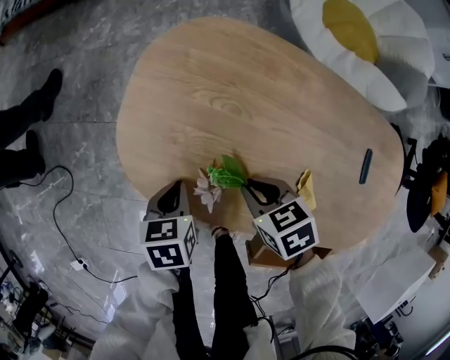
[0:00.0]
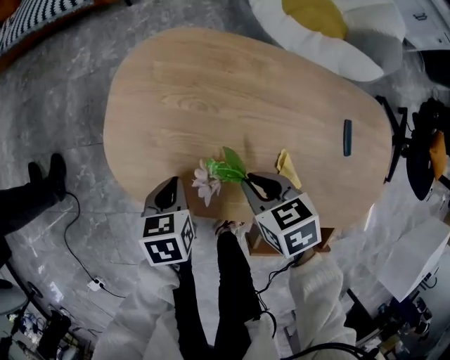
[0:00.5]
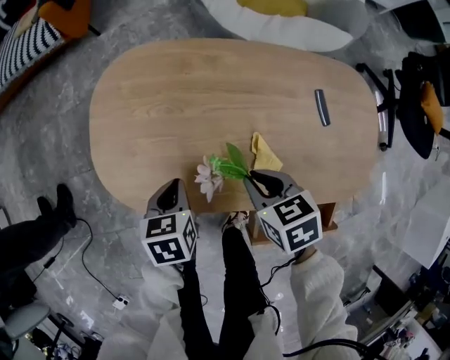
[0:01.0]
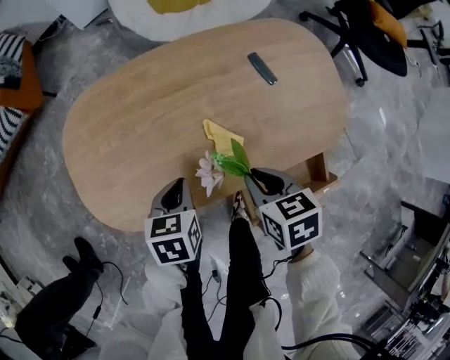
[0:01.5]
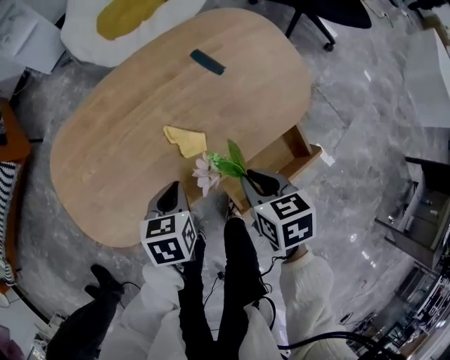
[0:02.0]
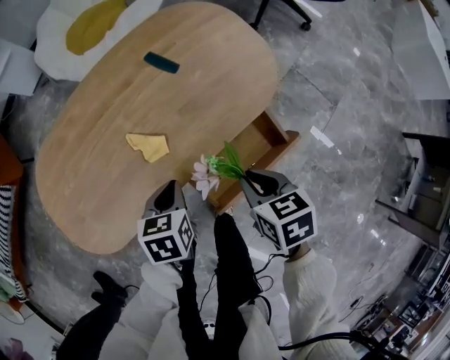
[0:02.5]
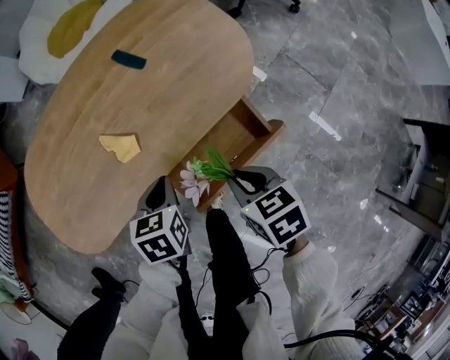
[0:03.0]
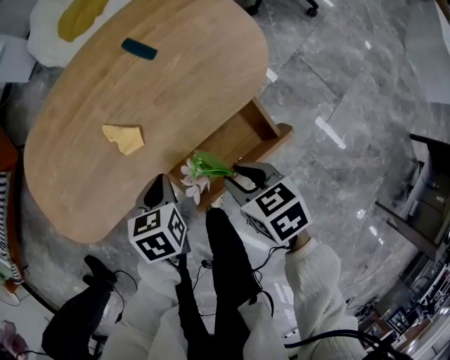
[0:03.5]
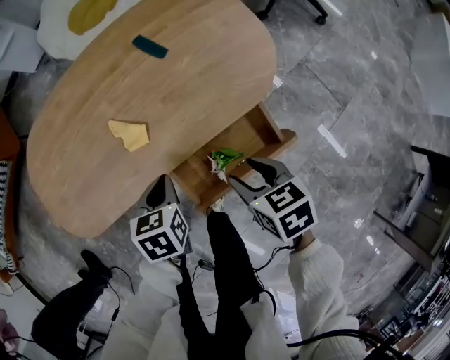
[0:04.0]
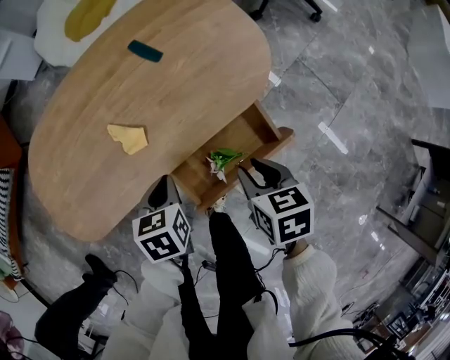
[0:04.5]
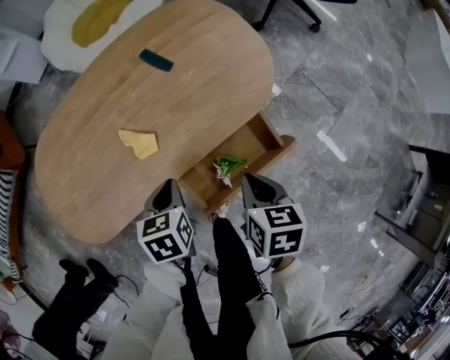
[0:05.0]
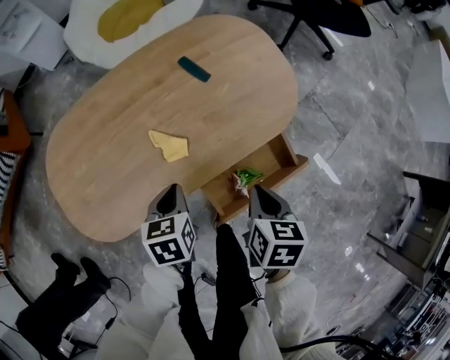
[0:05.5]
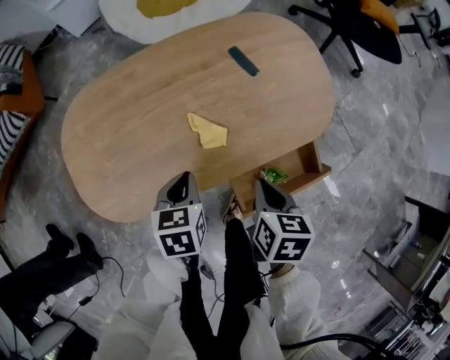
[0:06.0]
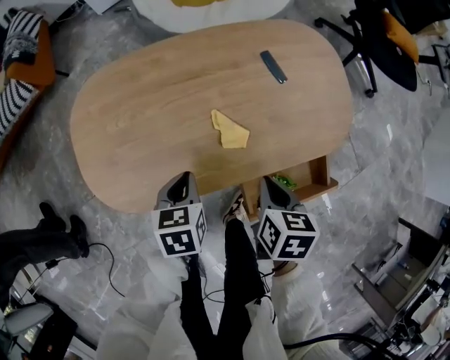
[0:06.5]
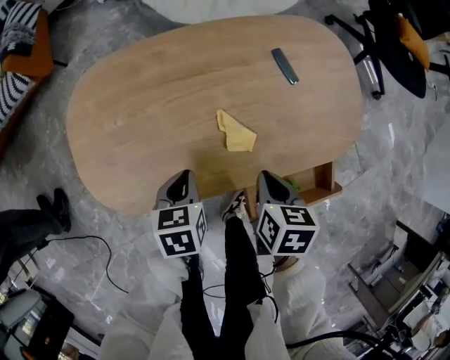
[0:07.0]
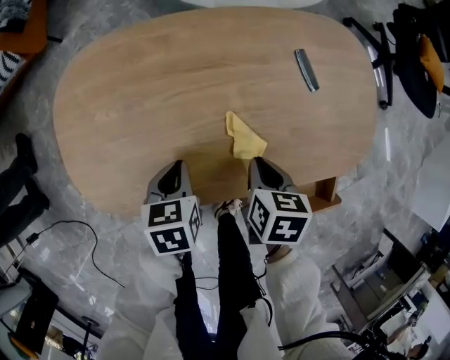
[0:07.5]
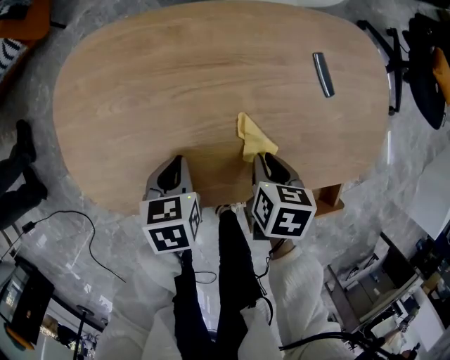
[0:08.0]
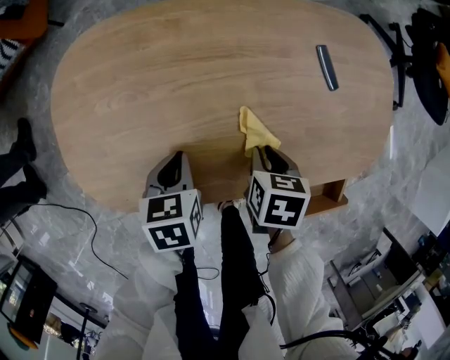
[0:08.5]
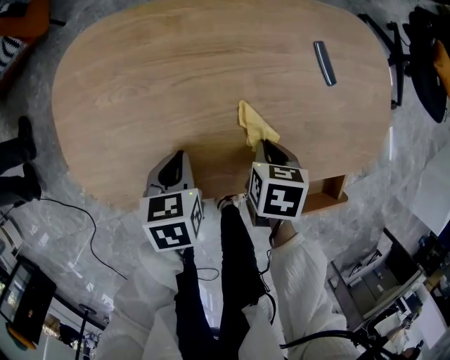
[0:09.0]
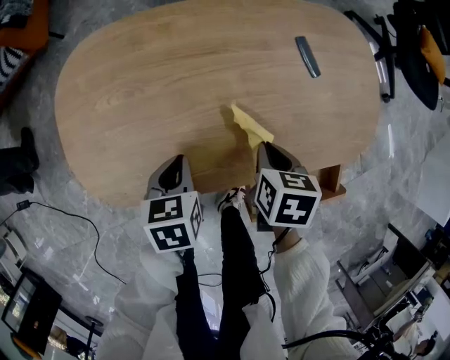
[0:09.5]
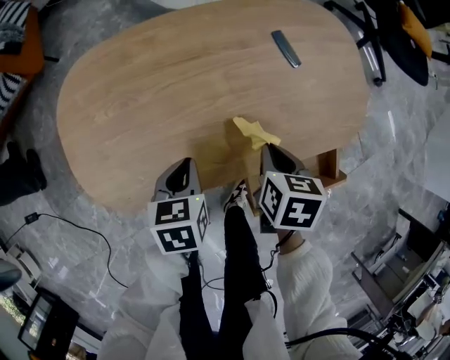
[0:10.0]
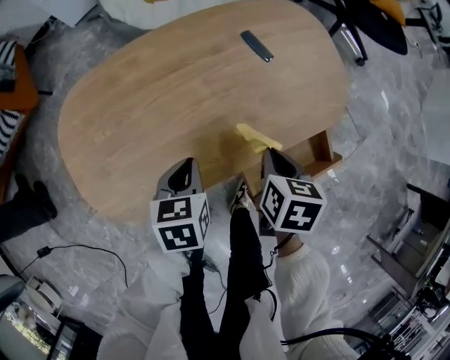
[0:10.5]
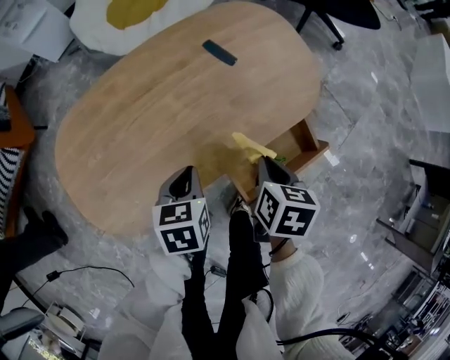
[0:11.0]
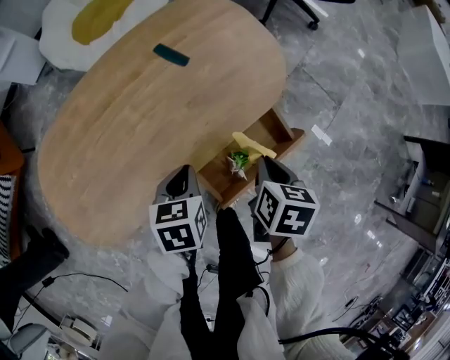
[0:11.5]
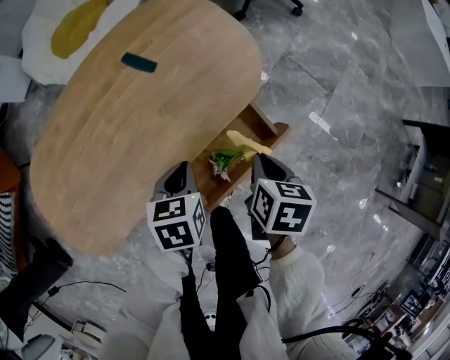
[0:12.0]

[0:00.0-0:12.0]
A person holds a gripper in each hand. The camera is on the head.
0:00.0 to 0:02.0: The left gripper ends up roughly 25 cm from where it was, and twists about 40 degrees clockwise, seen from behind; the right gripper shifts by approximately 30 cm, and swivels about 70 degrees.
0:02.0 to 0:04.0: The left gripper moves to the right, roughly 10 cm. The right gripper heads to the right and backward, covering some 15 cm, and opens its fingers.
0:04.0 to 0:06.0: The grippers both shift to the left by about 15 cm. The right gripper rotates about 20 degrees, and closes up.
0:06.0 to 0:08.0: The right gripper goes about 20 cm downward, forward and to the left, and changes its angle by some 20 degrees, while the left gripper shifts approximately 15 cm to the left and downward.
0:08.0 to 0:10.0: The right gripper travels upward by approximately 5 cm, while the left gripper moves about 5 cm.
0:10.0 to 0:12.0: The left gripper shifts by about 25 cm, and swivels some 30 degrees, while the right gripper shifts by approximately 25 cm, and rotates some 30 degrees.

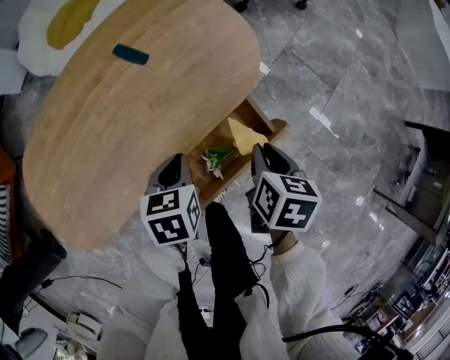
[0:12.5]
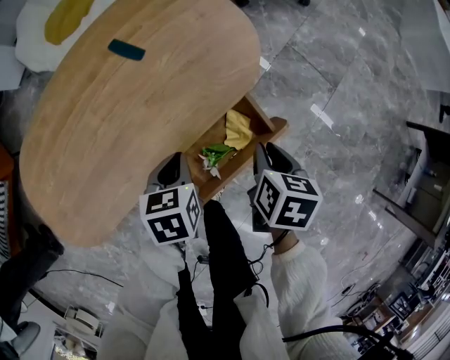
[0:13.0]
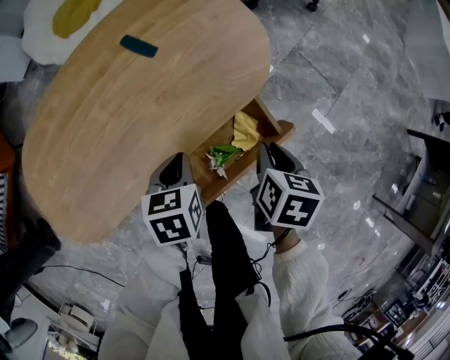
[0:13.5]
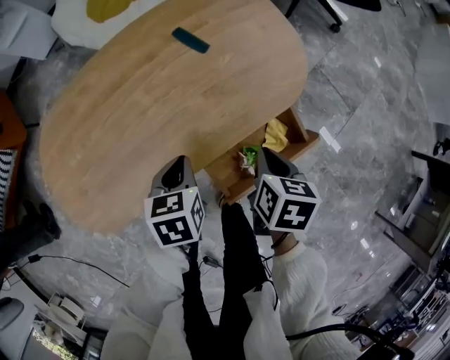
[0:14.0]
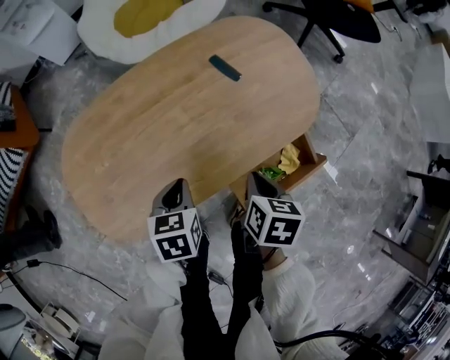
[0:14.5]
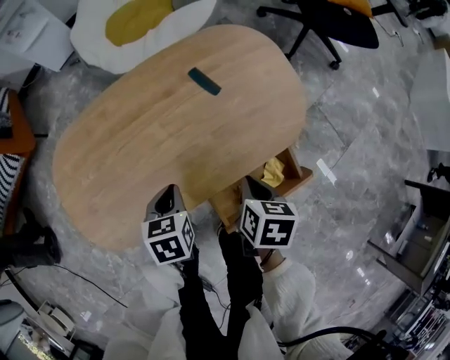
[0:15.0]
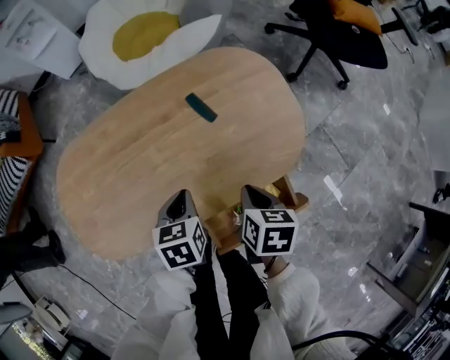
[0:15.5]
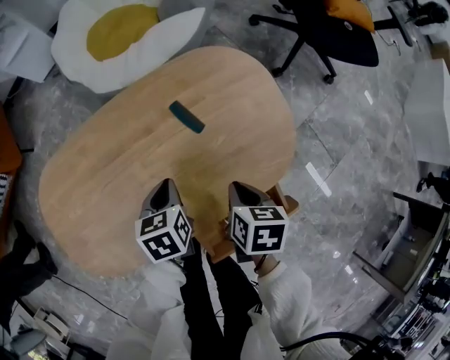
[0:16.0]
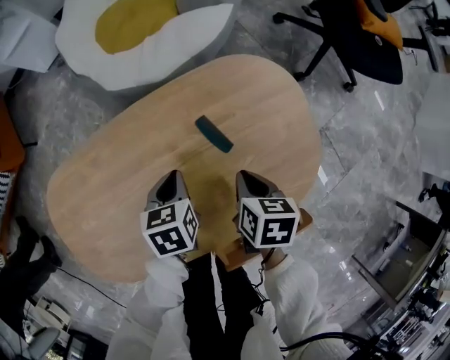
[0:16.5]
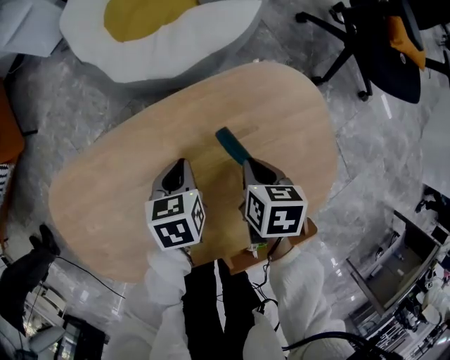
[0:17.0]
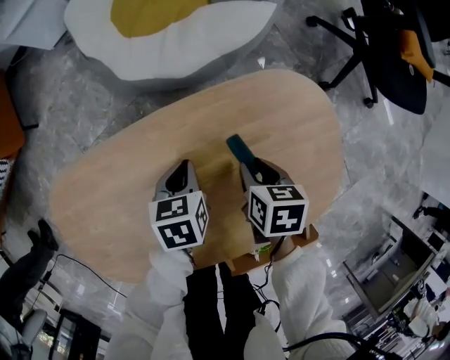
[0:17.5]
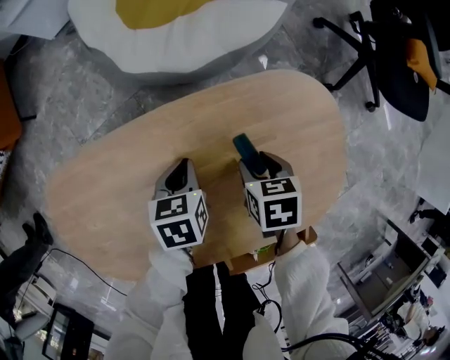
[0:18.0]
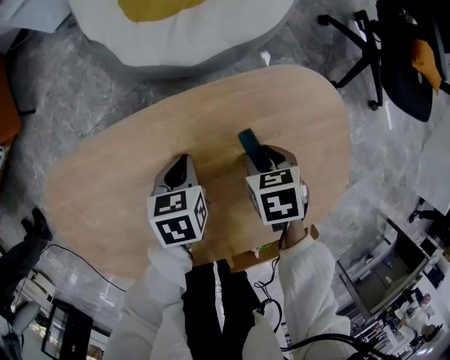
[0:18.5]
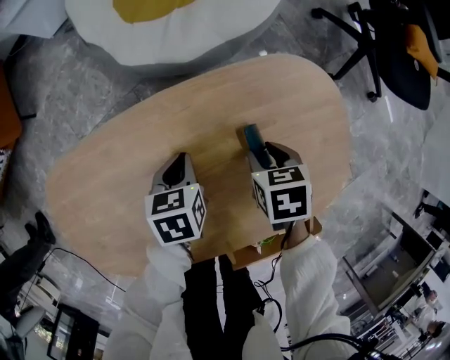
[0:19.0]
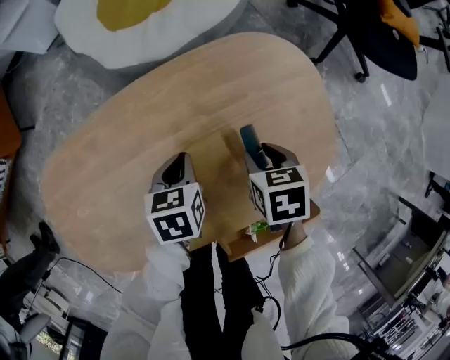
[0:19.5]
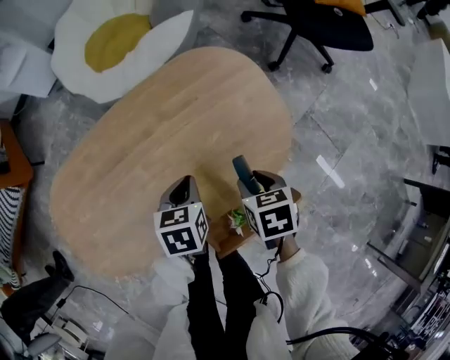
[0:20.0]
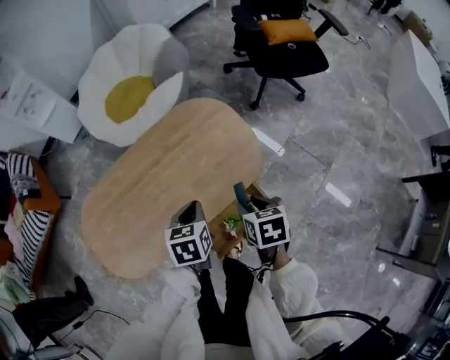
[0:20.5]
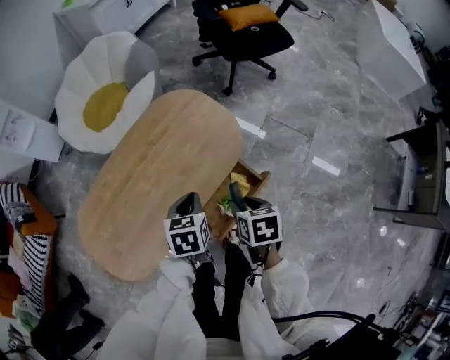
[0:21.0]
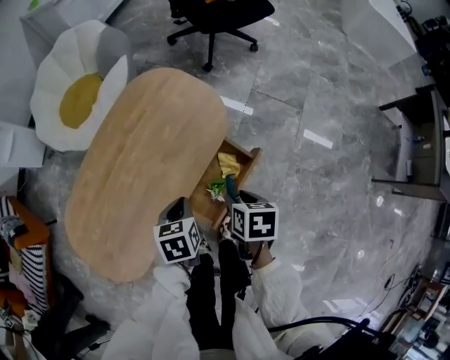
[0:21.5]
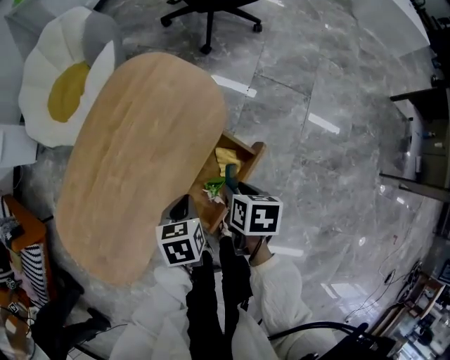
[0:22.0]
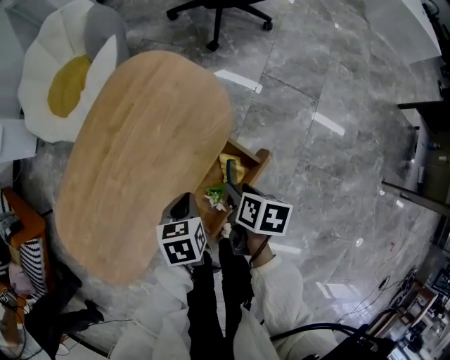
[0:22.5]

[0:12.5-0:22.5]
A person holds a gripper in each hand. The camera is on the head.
0:12.5 to 0:14.5: The grippers both shift to the left by roughly 20 cm.
0:14.5 to 0:16.5: Both grippers travel together forward, some 25 cm.
0:16.5 to 0:18.5: The left gripper changes place by some 10 cm. Meanwhile the right gripper ends up approximately 15 cm from where it was, turns by about 30 degrees, and opens up.
0:18.5 to 0:20.5: The right gripper moves some 40 cm, and rotates roughly 30 degrees, while the left gripper ends up about 40 cm from where it was, and rotates about 20 degrees.
0:20.5 to 0:22.5: Both grippers move downward and to the right, approximately 15 cm. The right gripper twists roughly 50 degrees clockwise, seen from behind, while the left gripper rotates some 20 degrees.

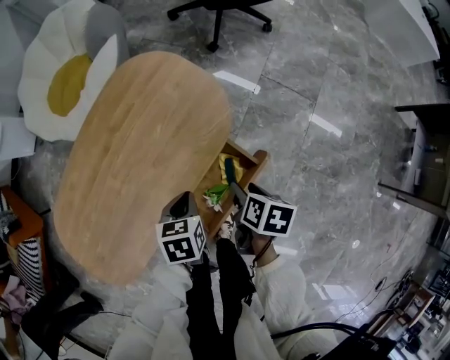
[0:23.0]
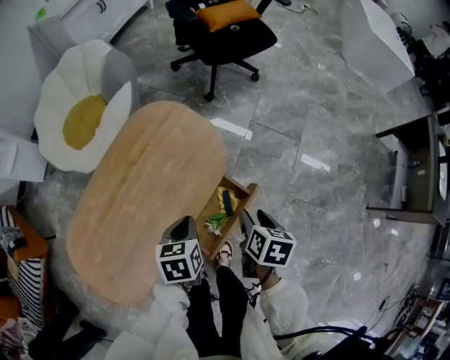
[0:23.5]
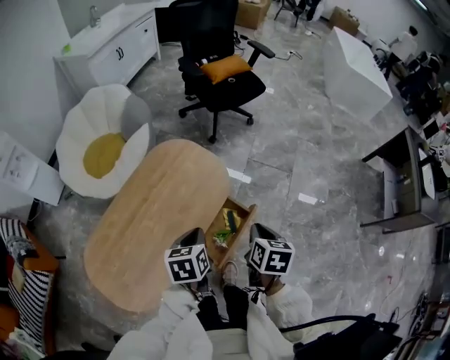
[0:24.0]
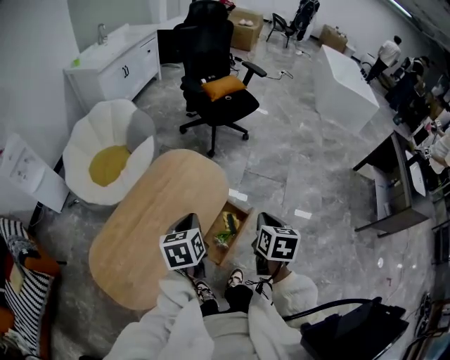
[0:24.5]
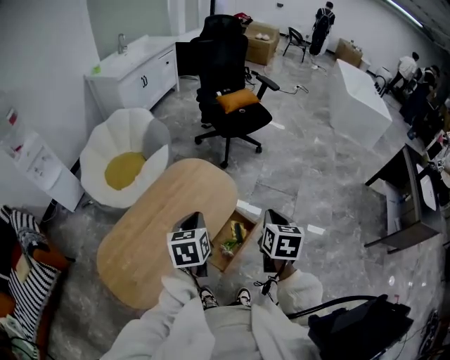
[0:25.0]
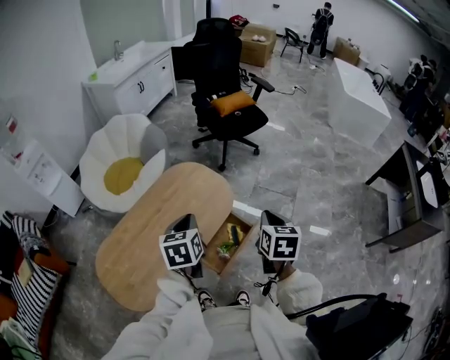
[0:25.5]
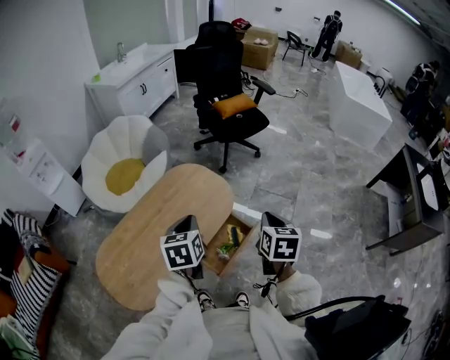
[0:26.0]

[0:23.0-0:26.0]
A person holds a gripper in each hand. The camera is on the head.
0:23.0 to 0:24.5: Both grippers move upward, about 30 cm. The right gripper rotates approximately 30 degrees, and closes its fingers. Meanwhile the left gripper swivels about 20 degrees.
0:24.5 to 0:26.0: The grippers make only small movements.

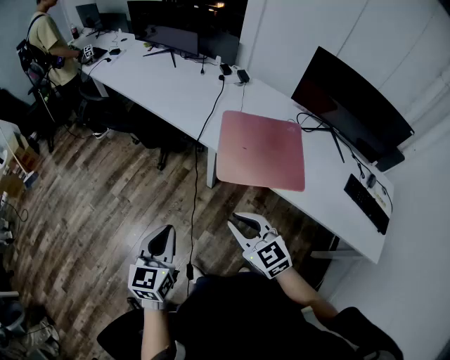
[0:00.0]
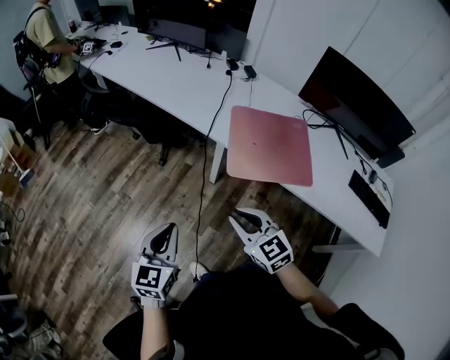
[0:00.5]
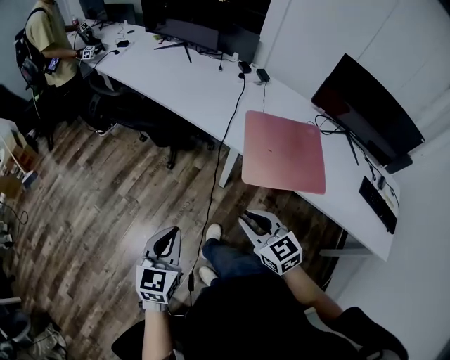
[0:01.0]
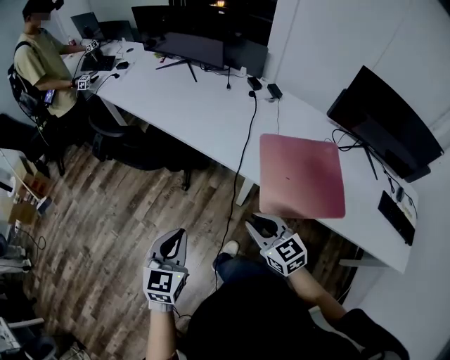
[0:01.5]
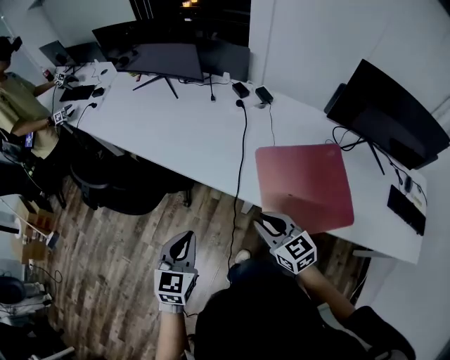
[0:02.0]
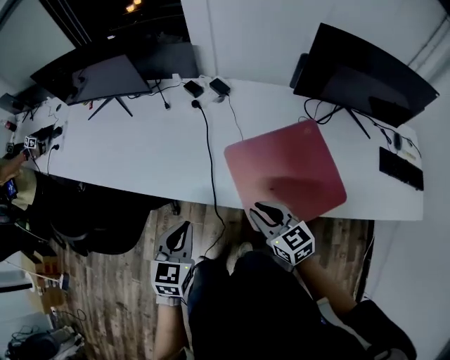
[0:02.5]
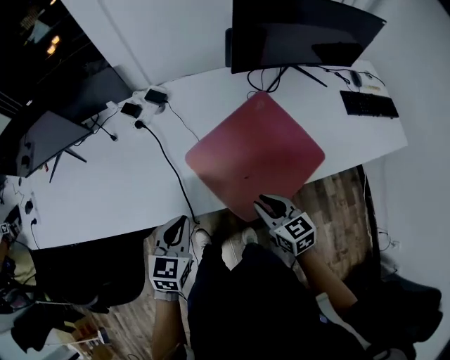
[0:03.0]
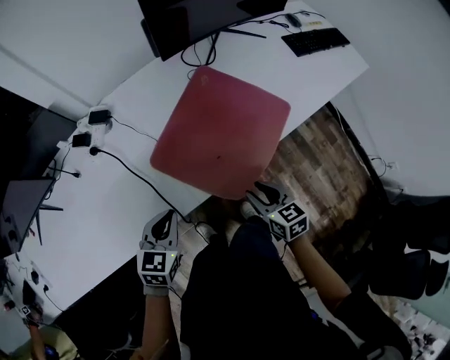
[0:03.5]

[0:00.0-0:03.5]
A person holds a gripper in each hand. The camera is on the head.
0:00.0 to 0:02.0: The two grippers go roughly 35 cm forward.
0:02.0 to 0:03.5: The left gripper changes place by about 25 cm, and changes its angle by approximately 60 degrees. Meanwhile the right gripper shifts by some 20 cm, and swivels some 70 degrees.
